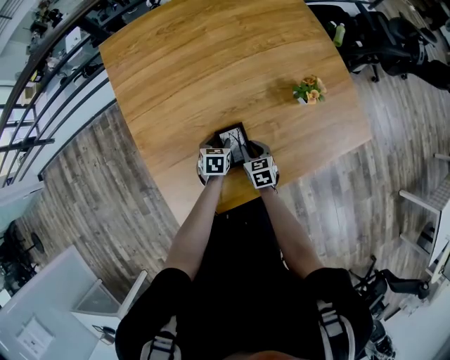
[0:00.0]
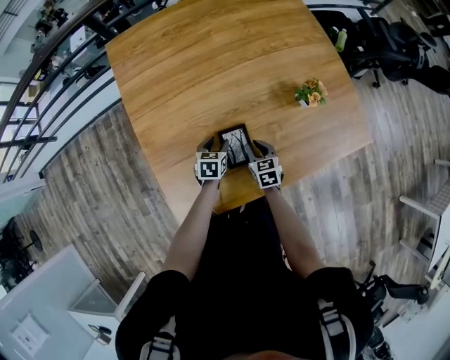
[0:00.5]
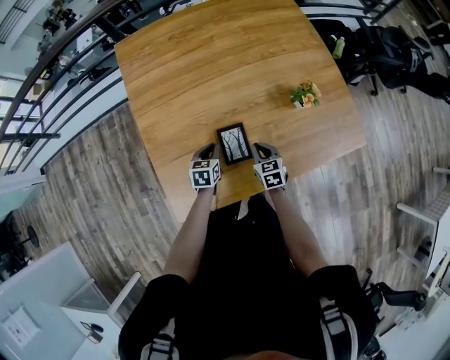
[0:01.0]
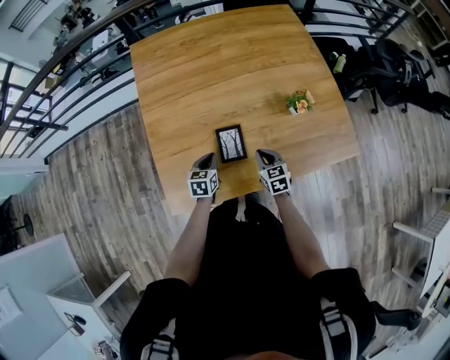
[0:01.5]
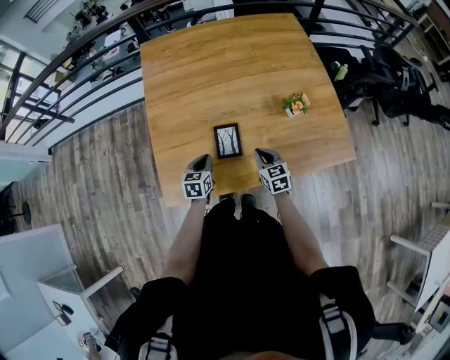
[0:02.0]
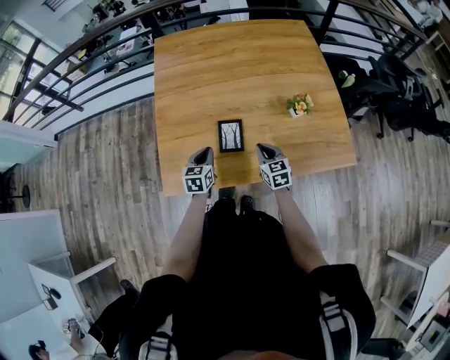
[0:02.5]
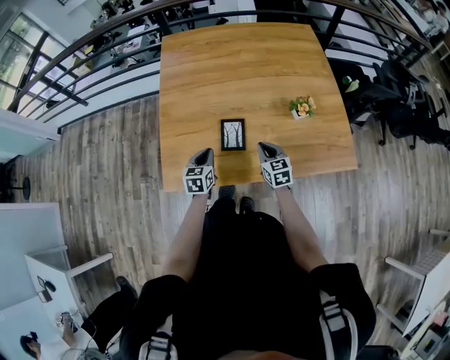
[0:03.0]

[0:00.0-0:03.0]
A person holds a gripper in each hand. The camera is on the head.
0:00.0 to 0:01.5: The left gripper shifts about 15 cm upward and backward, and closes its fingers, while the right gripper moves upward and to the right, approximately 10 cm.
0:01.5 to 0:03.0: The left gripper goes roughly 10 cm backward and upward. The right gripper shifts some 5 cm upward.

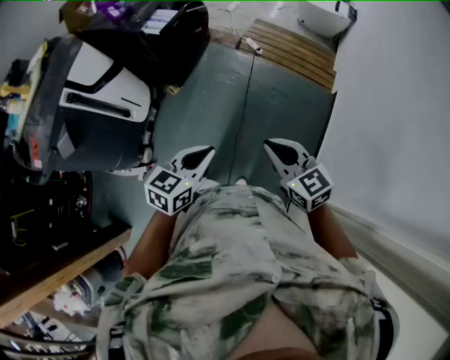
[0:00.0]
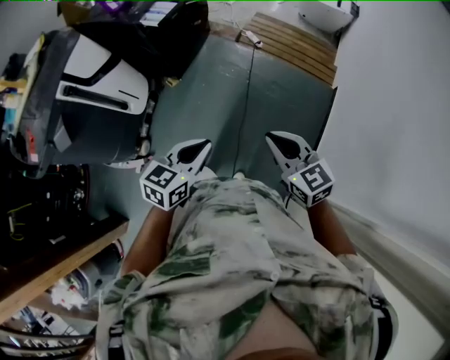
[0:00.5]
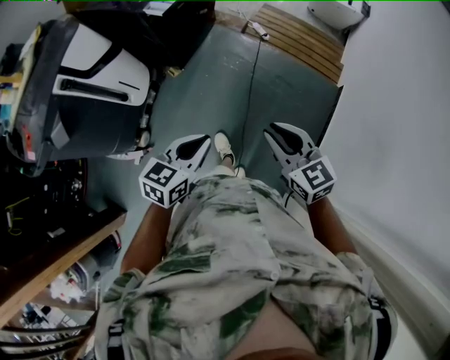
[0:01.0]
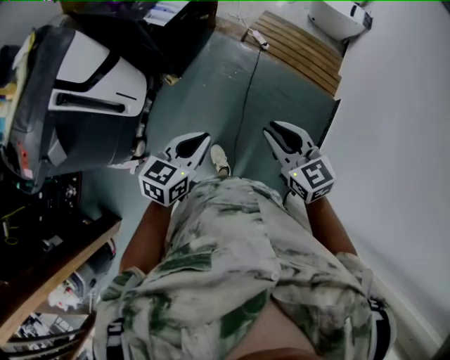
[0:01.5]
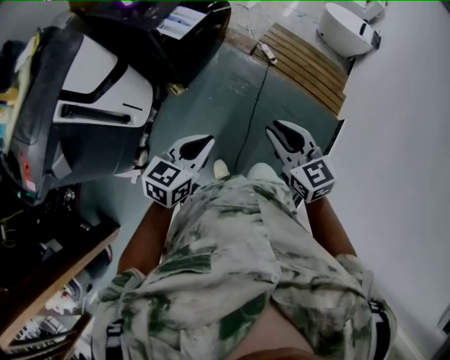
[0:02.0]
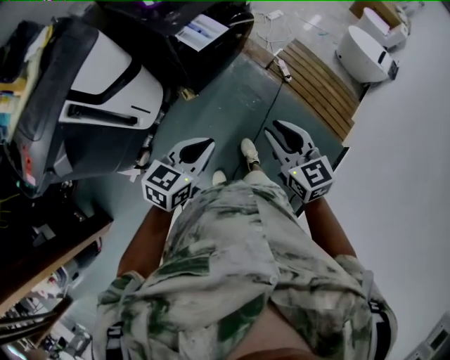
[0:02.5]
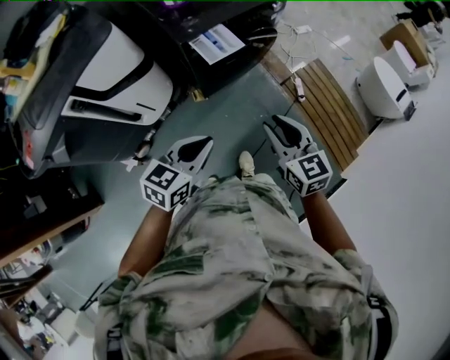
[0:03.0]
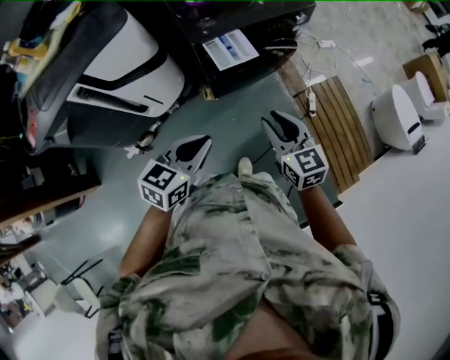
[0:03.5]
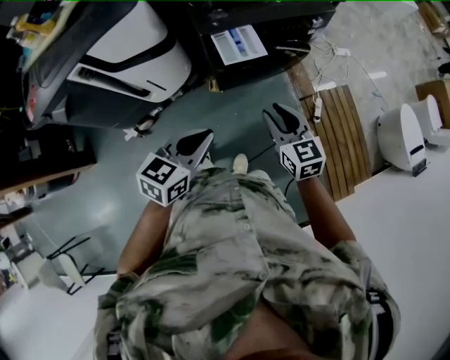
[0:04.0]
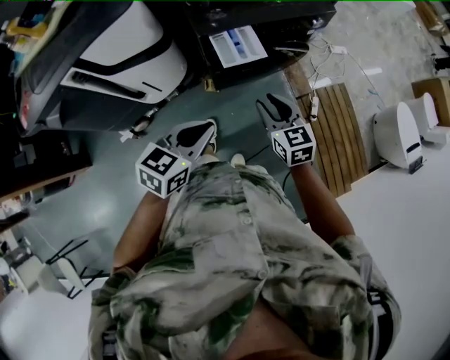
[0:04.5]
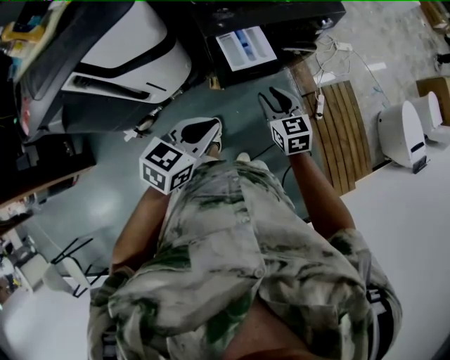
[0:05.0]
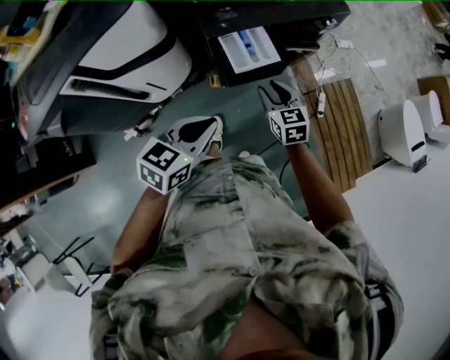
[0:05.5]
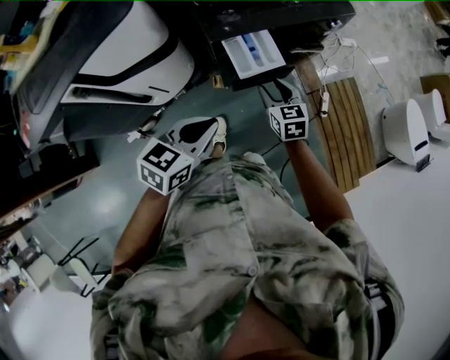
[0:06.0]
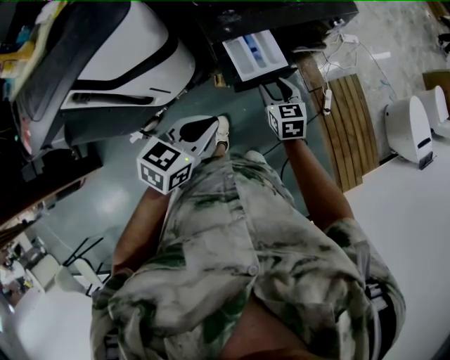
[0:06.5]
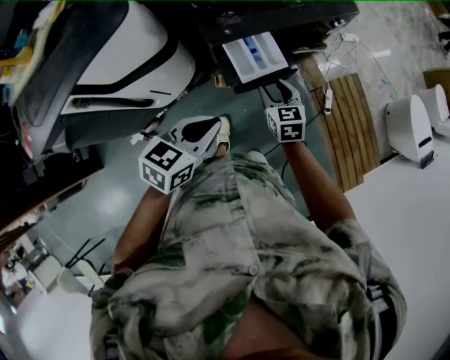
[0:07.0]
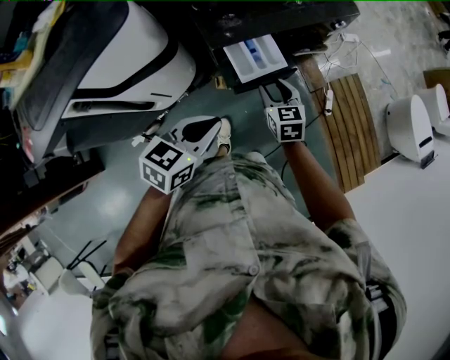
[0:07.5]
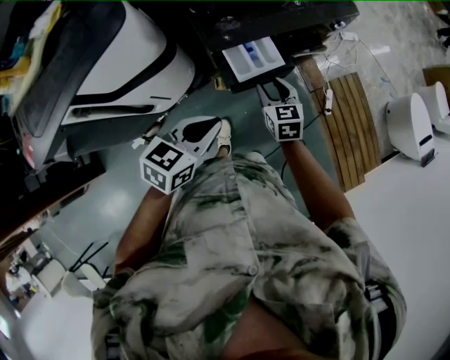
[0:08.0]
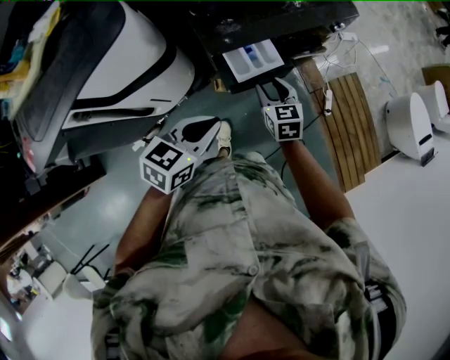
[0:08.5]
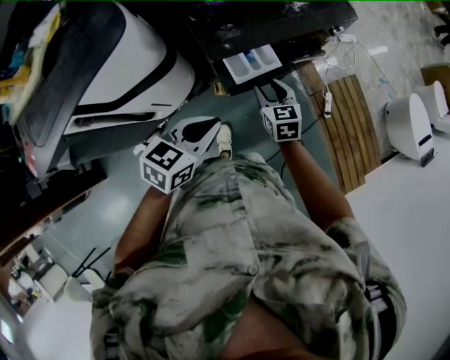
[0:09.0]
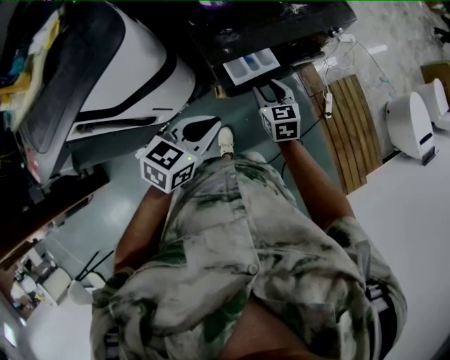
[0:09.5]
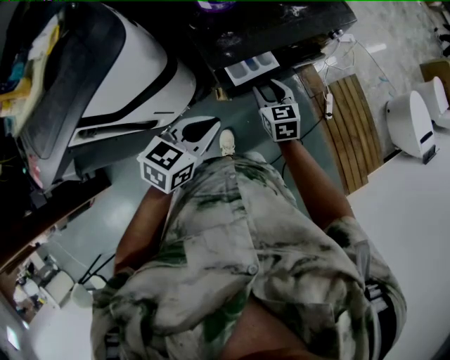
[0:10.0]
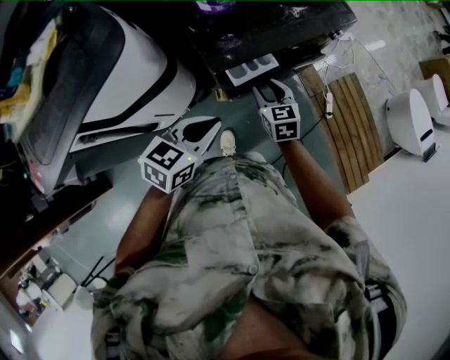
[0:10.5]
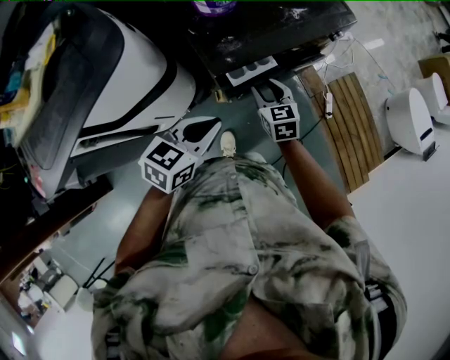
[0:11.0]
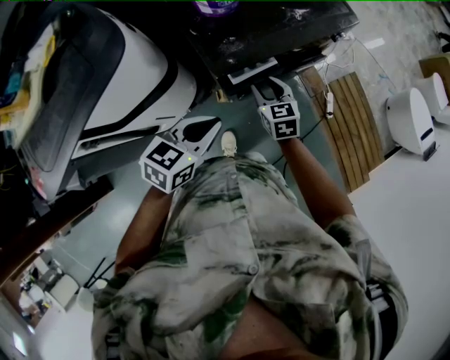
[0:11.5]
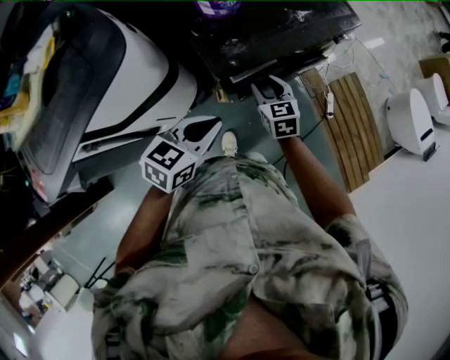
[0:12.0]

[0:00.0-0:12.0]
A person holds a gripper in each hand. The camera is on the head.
0:00.0 to 0:02.0: The right gripper is displaced forward by roughly 25 cm. The left gripper travels forward and to the left by about 25 cm.
0:02.0 to 0:04.0: The right gripper changes place by some 35 cm, and changes its angle by approximately 30 degrees, while the left gripper shifts by some 25 cm, and changes its angle by roughly 40 degrees.
0:04.0 to 0:06.0: The left gripper moves forward and to the left, roughly 15 cm. Meanwhile the right gripper goes some 20 cm forward, downward and to the left.
0:06.0 to 0:08.0: The left gripper goes approximately 5 cm forward. The right gripper shifts by about 5 cm.
0:08.0 to 0:10.0: The left gripper shifts by some 5 cm; the right gripper moves some 5 cm.
0:10.0 to 0:12.0: The grippers make only small movements.

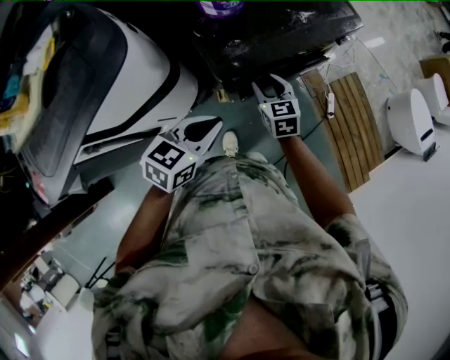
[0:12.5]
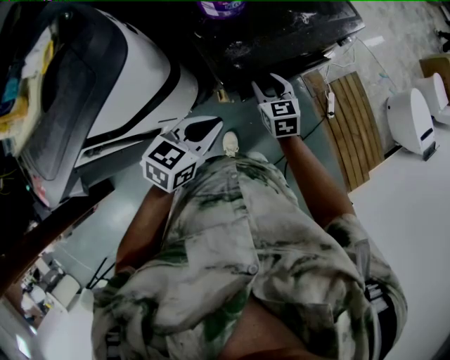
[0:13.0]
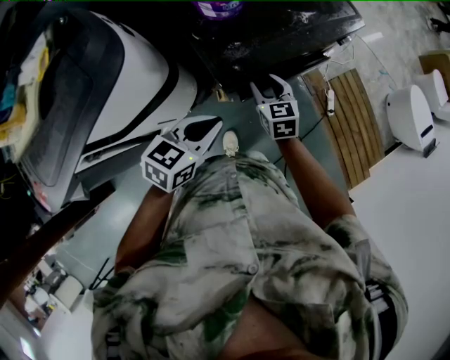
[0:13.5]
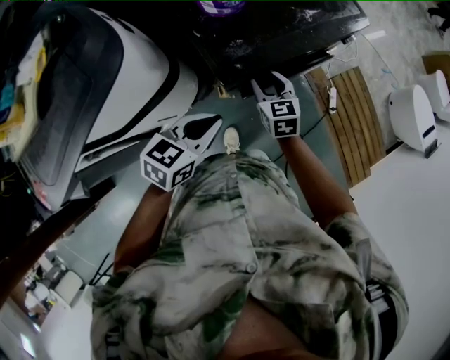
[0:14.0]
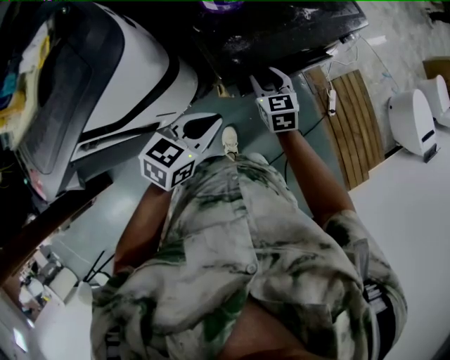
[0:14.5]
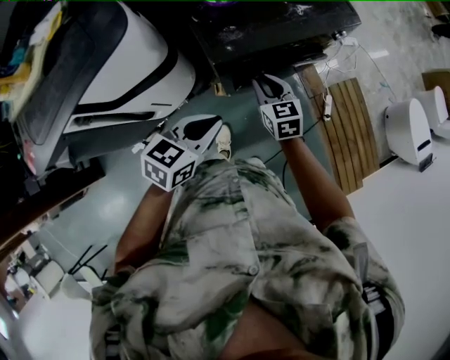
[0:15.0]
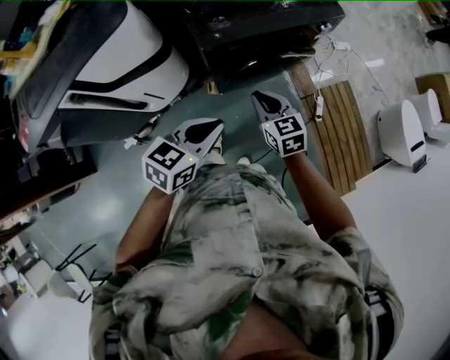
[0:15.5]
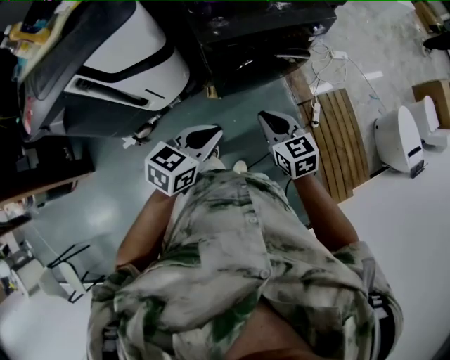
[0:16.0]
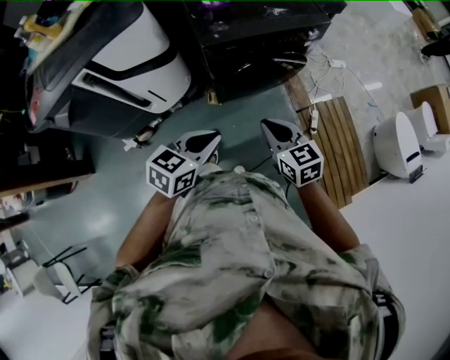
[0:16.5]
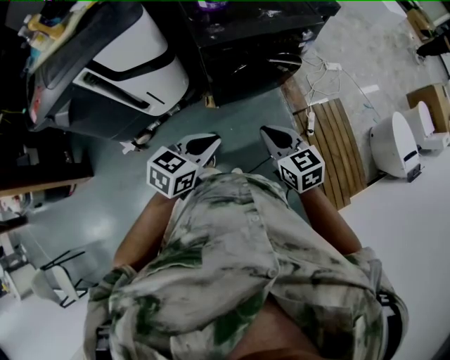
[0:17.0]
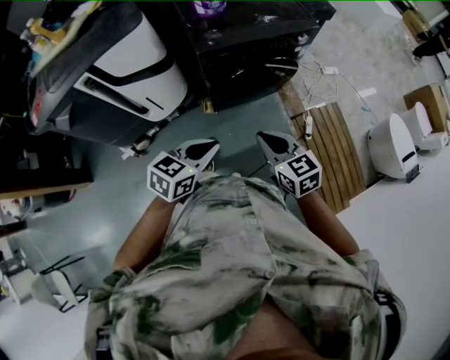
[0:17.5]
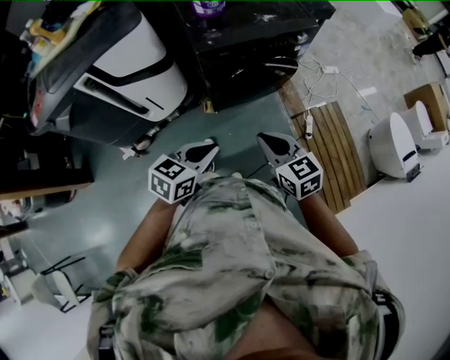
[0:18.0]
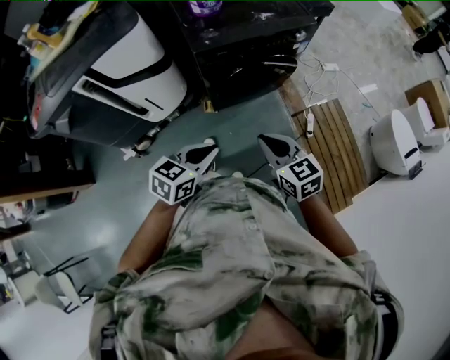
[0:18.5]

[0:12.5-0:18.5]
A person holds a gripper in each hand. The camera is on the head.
0:12.5 to 0:14.5: The grippers move only a little.
0:14.5 to 0:16.5: Both grippers travel together backward and to the right, some 35 cm. The right gripper closes up.
0:16.5 to 0:18.5: The right gripper is displaced backward by about 5 cm. The left gripper moves some 5 cm.

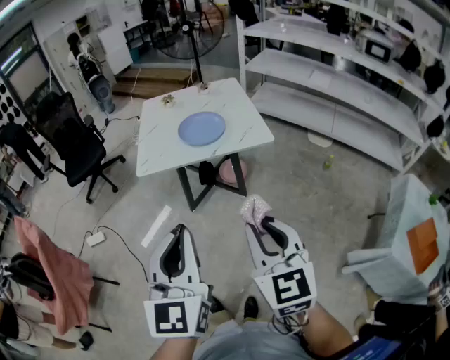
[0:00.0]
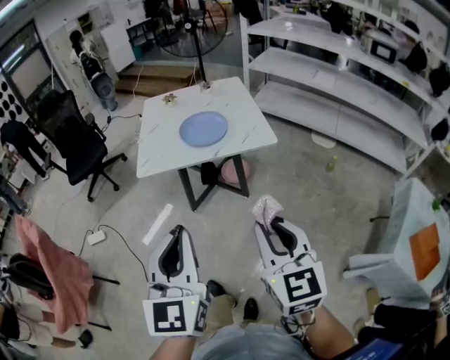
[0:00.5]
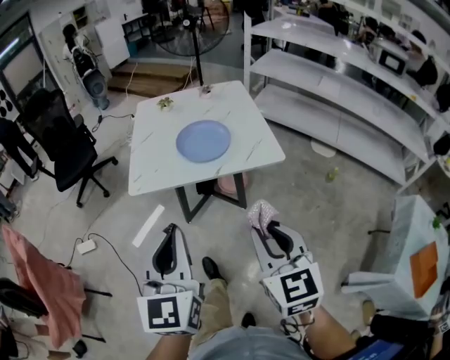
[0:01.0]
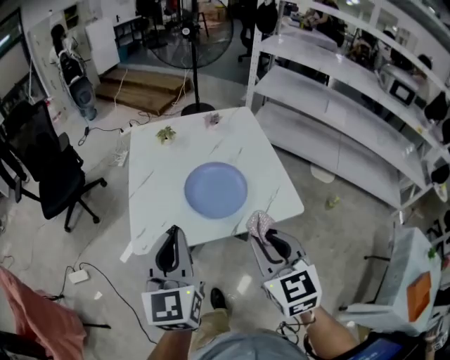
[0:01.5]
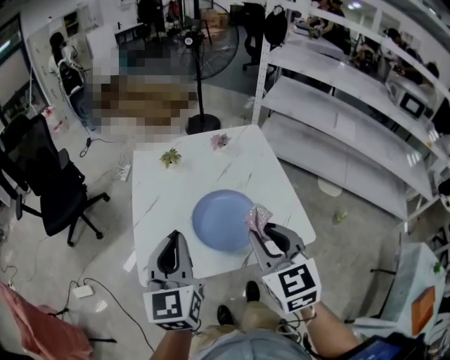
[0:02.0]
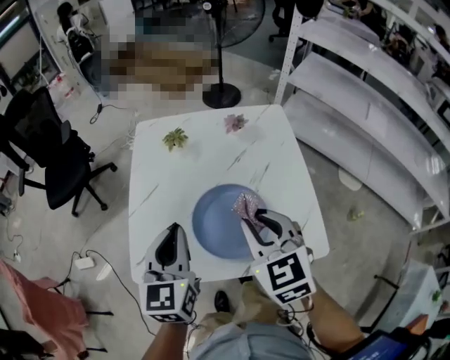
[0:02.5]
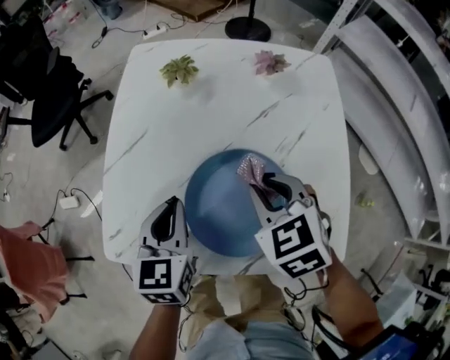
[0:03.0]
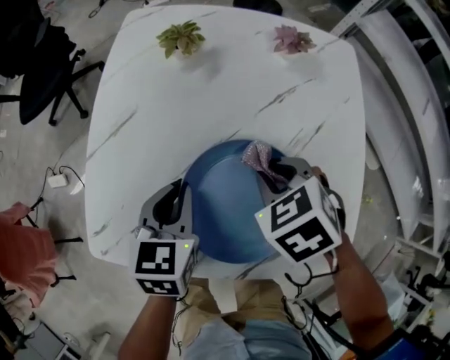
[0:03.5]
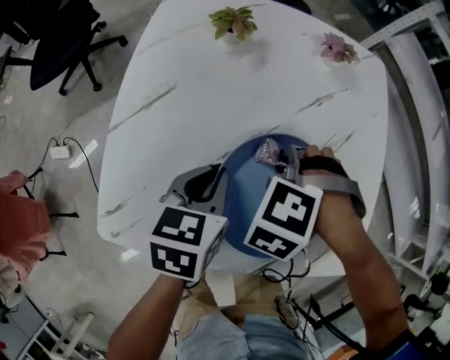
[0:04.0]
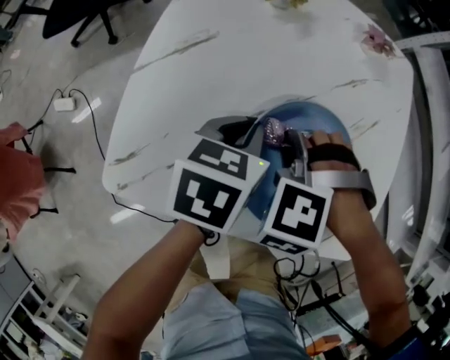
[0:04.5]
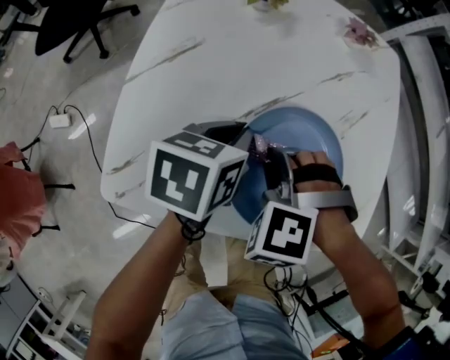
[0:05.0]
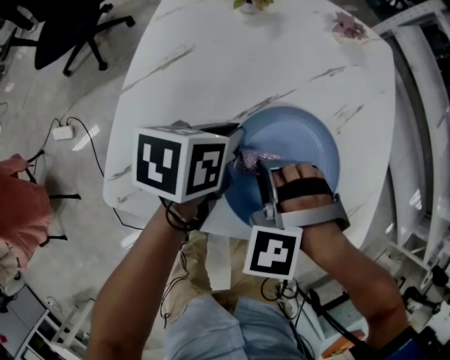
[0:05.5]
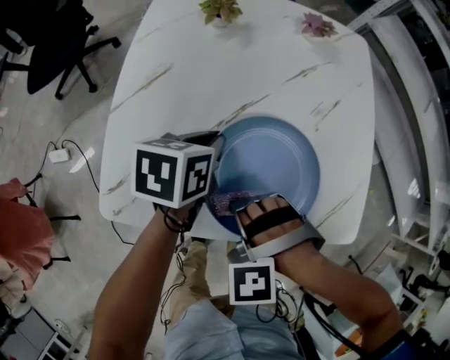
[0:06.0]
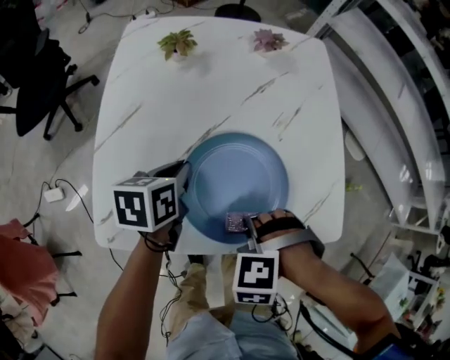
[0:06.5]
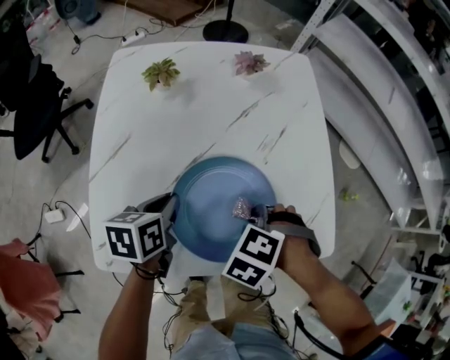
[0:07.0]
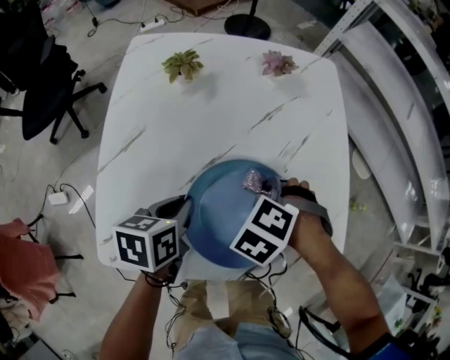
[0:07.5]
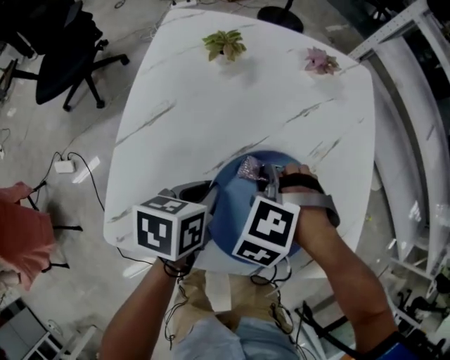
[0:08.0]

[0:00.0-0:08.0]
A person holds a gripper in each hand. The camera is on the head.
0:00.0 to 0:02.0: The two grippers travel together, forward, some 50 cm.
0:02.0 to 0:04.0: Both grippers move downward, roughly 30 cm. The left gripper points its fingers some 40 degrees further downward; the right gripper tilts its fingers approximately 50 degrees downward.
0:04.0 to 0:06.0: The right gripper is displaced backward by about 20 cm, and rotates roughly 30 degrees.
0:06.0 to 0:08.0: The right gripper shifts by about 15 cm, and swivels some 30 degrees.
